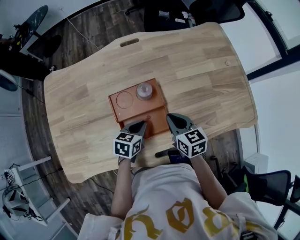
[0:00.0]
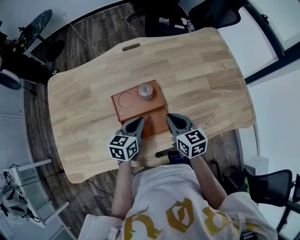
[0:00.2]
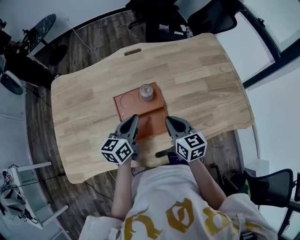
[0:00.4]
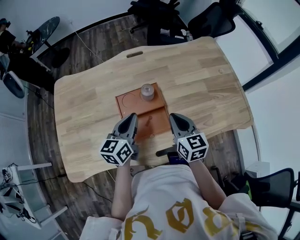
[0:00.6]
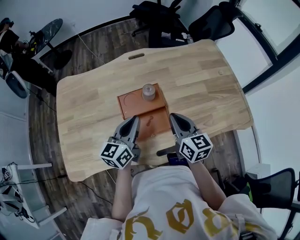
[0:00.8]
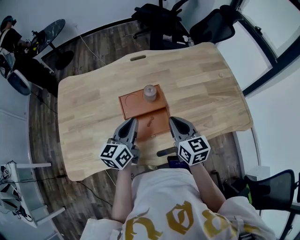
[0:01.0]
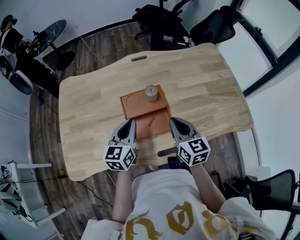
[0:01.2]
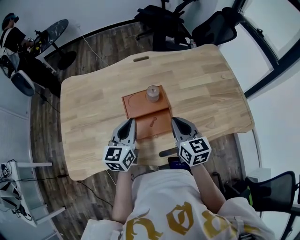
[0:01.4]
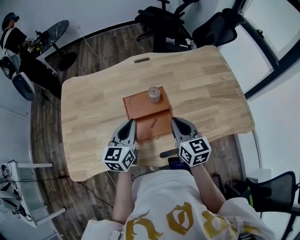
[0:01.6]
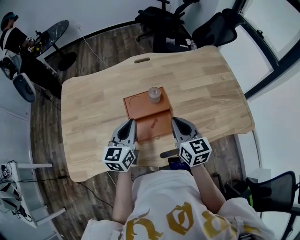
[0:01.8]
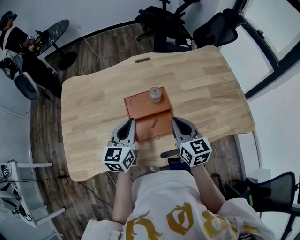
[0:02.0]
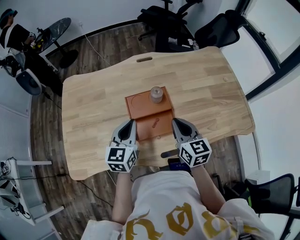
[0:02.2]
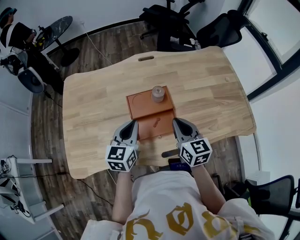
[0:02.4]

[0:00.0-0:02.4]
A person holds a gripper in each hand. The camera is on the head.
0:00.0 to 0:01.2: The right gripper travels upward and backward by some 15 cm, while the left gripper travels upward and to the left by roughly 20 cm, and swivels about 40 degrees.
0:01.2 to 0:02.4: There are only small adjustments of the grippers.

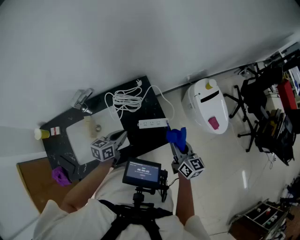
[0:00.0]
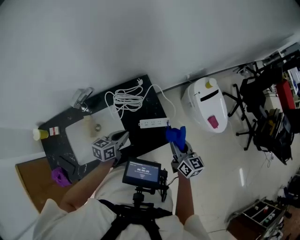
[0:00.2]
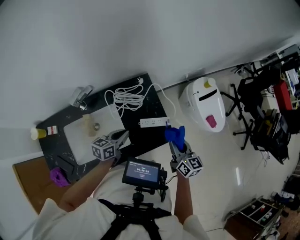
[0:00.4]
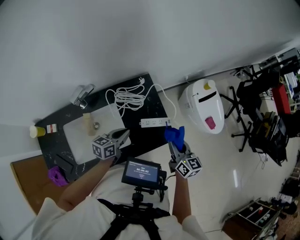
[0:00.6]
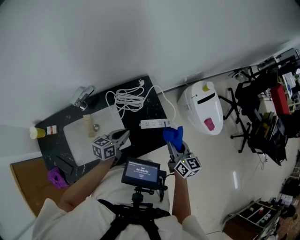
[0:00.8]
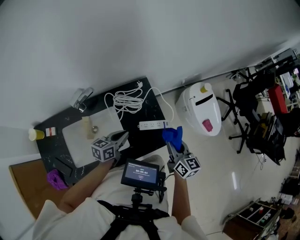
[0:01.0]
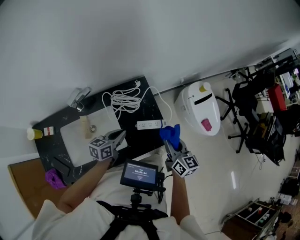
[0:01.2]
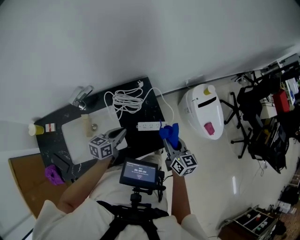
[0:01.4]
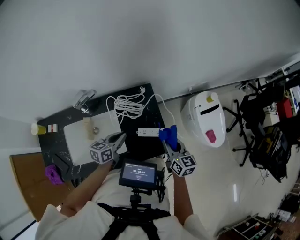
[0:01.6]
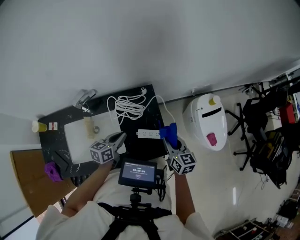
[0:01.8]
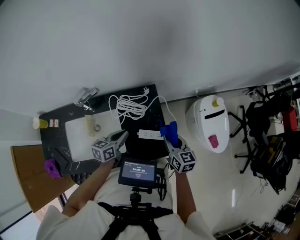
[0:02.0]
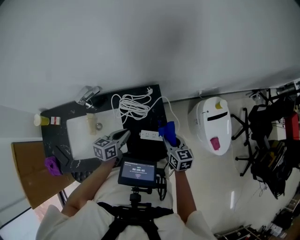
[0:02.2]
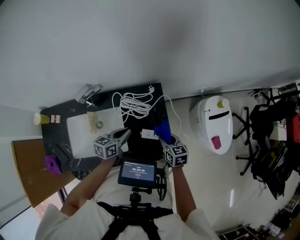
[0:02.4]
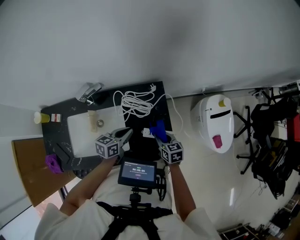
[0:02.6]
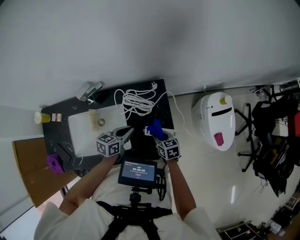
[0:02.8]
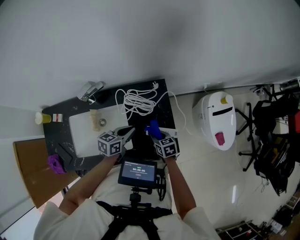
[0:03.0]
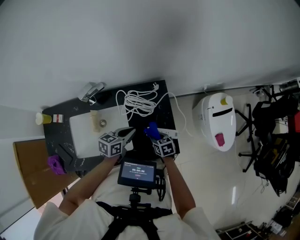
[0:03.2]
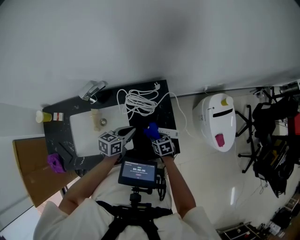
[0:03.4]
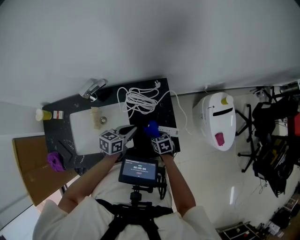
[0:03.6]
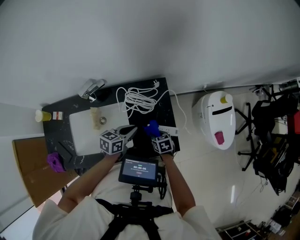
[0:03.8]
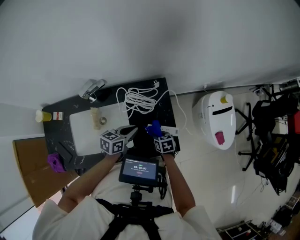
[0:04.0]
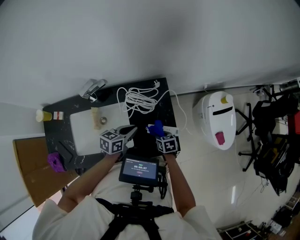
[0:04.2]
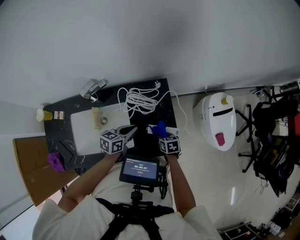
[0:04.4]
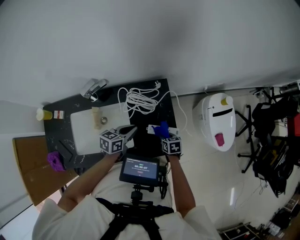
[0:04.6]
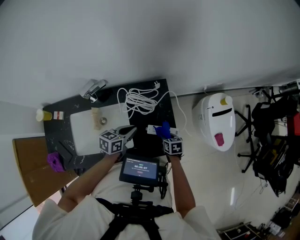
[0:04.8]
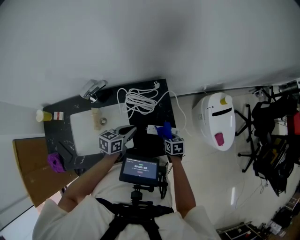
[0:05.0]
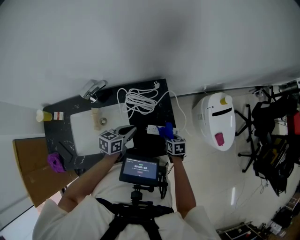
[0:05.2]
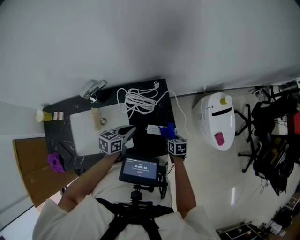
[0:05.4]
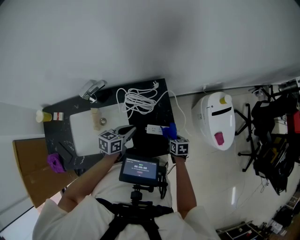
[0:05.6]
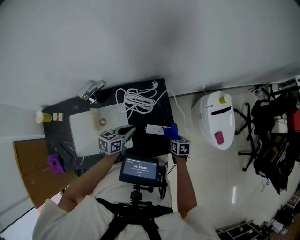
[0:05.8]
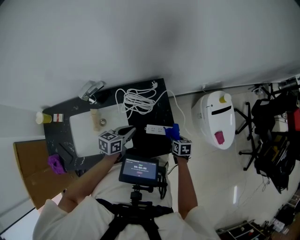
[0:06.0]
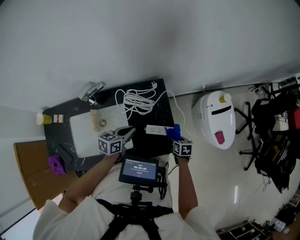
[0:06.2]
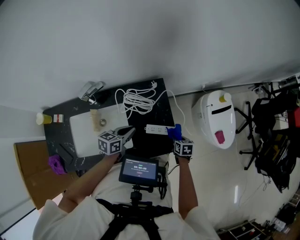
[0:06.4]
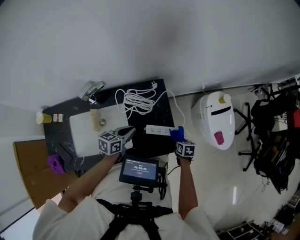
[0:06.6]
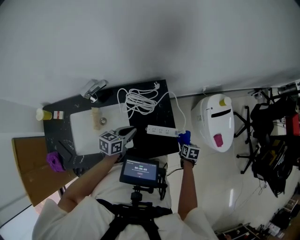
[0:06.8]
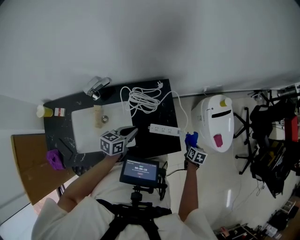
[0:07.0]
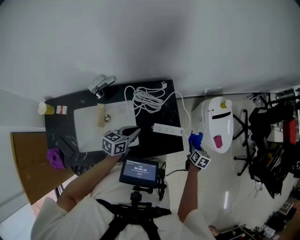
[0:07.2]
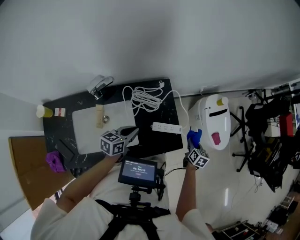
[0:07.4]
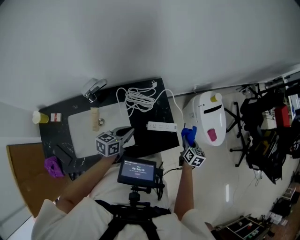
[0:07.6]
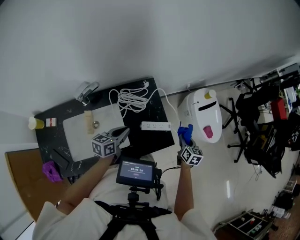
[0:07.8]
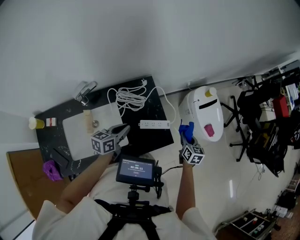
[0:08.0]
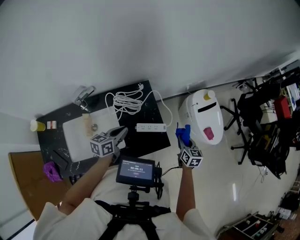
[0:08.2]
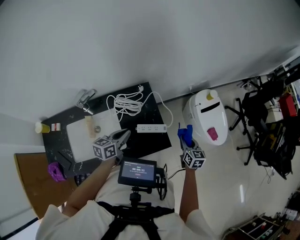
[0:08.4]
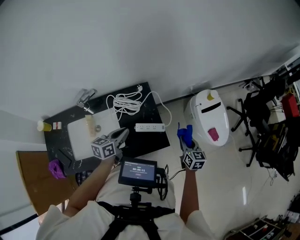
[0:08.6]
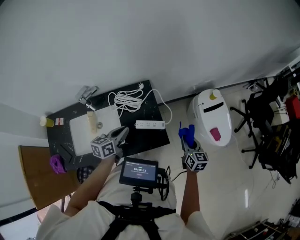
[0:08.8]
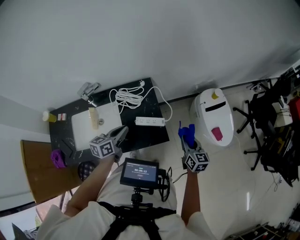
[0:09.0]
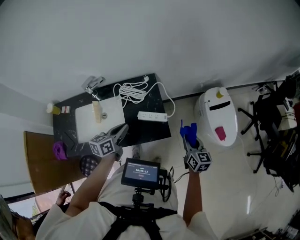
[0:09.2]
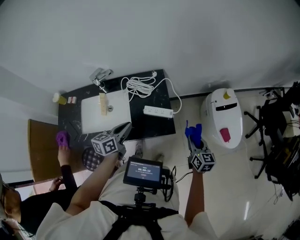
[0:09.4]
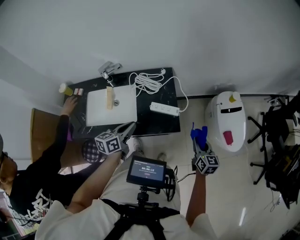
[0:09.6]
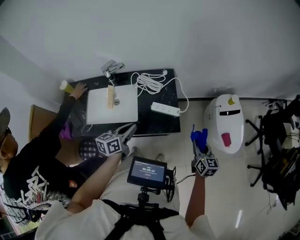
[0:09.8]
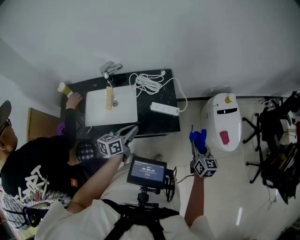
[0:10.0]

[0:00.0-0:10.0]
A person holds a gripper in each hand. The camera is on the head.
0:00.0 to 0:01.4: The right gripper shifts about 5 cm to the left.
0:01.4 to 0:02.8: The right gripper heads downward, forward and to the left, covering about 20 cm, and changes its angle by some 40 degrees, while the left gripper heads forward, covering approximately 5 cm.
0:02.8 to 0:04.2: The right gripper goes some 5 cm downward.
0:04.2 to 0:05.8: The right gripper is displaced to the right by some 10 cm.
0:05.8 to 0:07.2: The right gripper travels to the right by about 10 cm, and rotates some 20 degrees. Meanwhile the left gripper moves about 5 cm.
0:07.2 to 0:08.6: The left gripper goes roughly 15 cm to the right and upward. Meanwhile the right gripper goes roughly 15 cm upward and to the right, and rotates some 20 degrees.
0:08.6 to 0:10.0: The grippers both shift backward by some 20 cm.

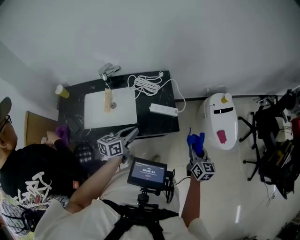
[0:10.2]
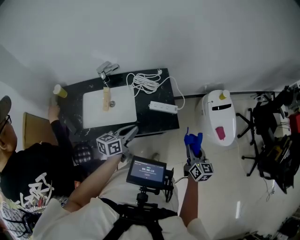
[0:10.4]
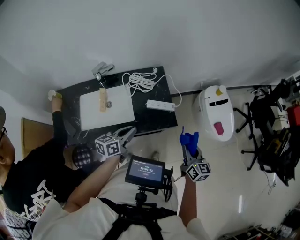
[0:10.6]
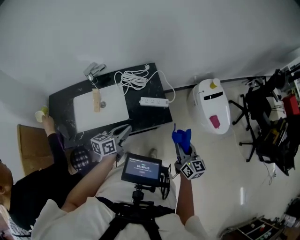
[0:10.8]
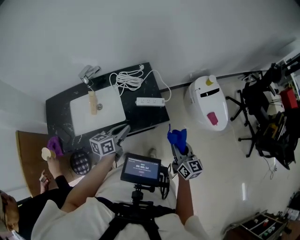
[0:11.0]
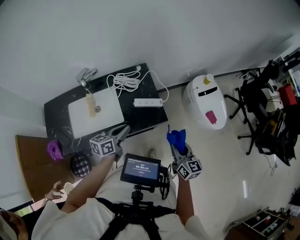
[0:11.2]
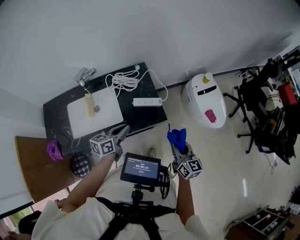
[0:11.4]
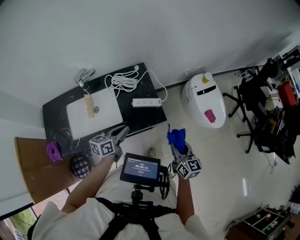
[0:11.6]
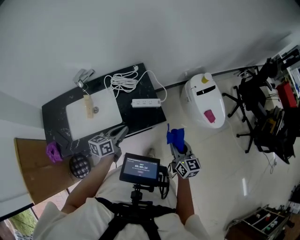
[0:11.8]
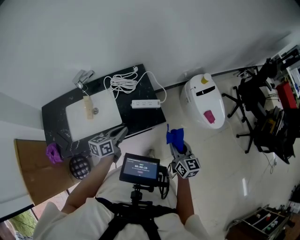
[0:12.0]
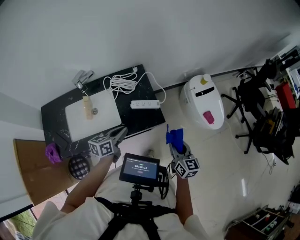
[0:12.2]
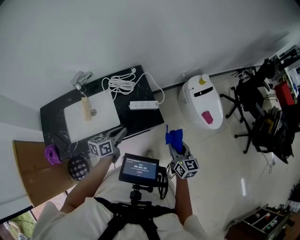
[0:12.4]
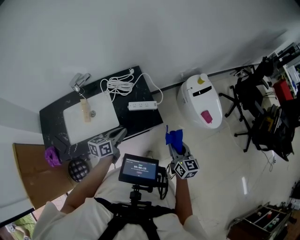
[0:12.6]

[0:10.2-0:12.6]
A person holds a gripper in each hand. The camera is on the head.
0:10.2 to 0:11.4: The right gripper moves backward, some 5 cm.
0:11.4 to 0:12.6: The grippers move only a little.

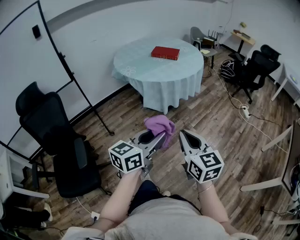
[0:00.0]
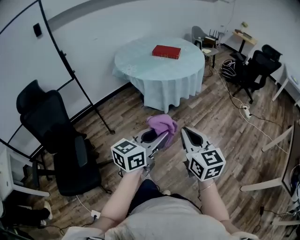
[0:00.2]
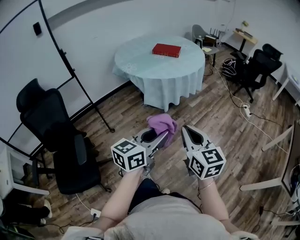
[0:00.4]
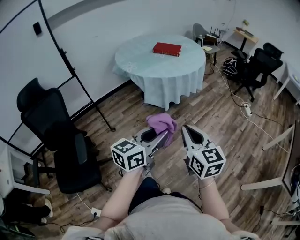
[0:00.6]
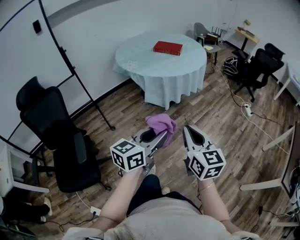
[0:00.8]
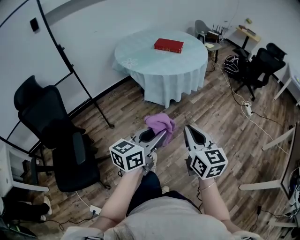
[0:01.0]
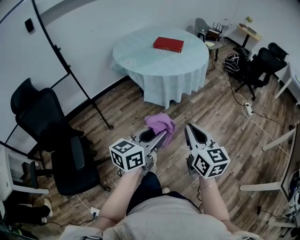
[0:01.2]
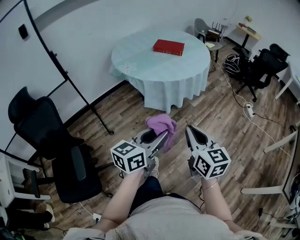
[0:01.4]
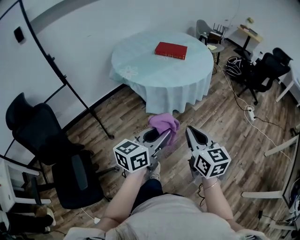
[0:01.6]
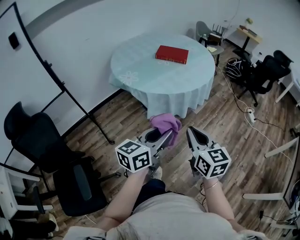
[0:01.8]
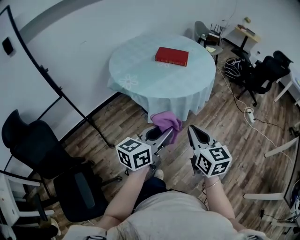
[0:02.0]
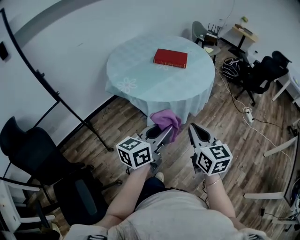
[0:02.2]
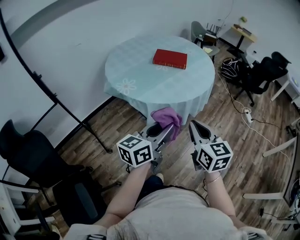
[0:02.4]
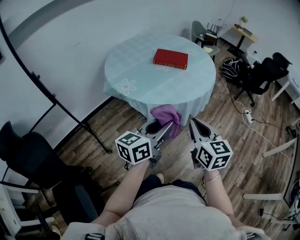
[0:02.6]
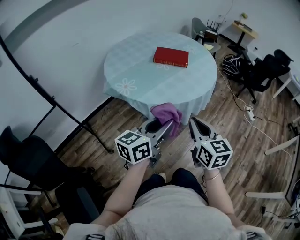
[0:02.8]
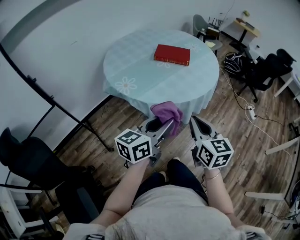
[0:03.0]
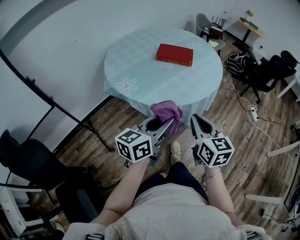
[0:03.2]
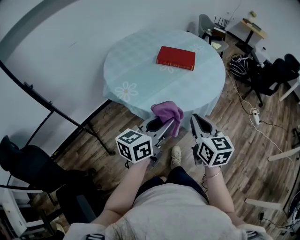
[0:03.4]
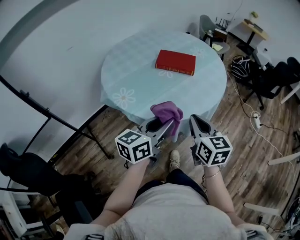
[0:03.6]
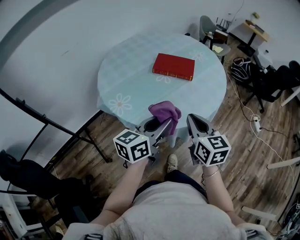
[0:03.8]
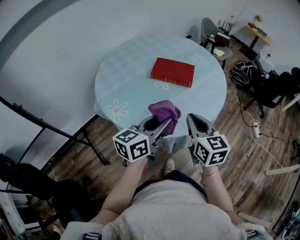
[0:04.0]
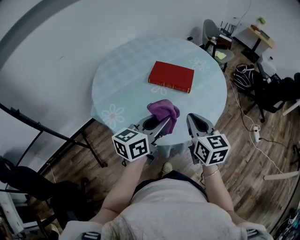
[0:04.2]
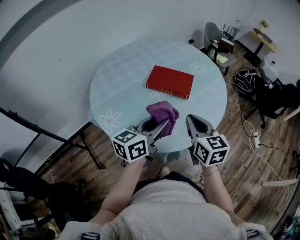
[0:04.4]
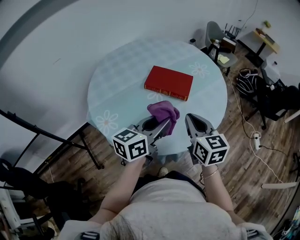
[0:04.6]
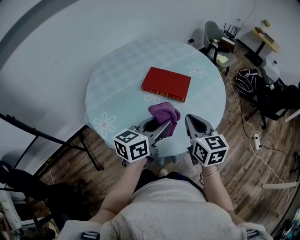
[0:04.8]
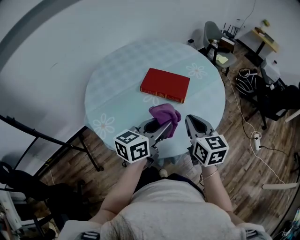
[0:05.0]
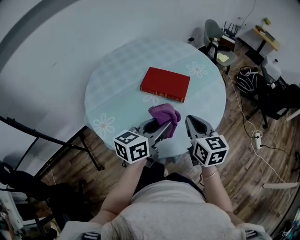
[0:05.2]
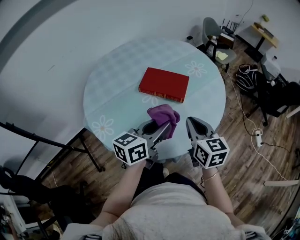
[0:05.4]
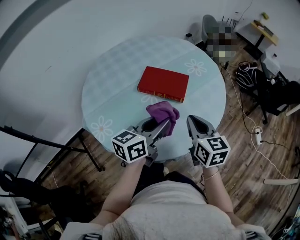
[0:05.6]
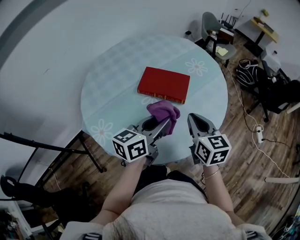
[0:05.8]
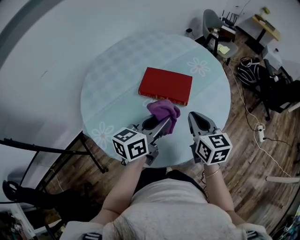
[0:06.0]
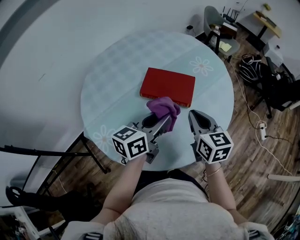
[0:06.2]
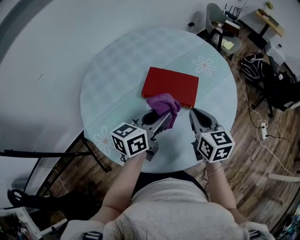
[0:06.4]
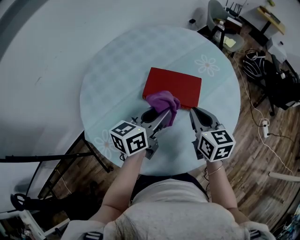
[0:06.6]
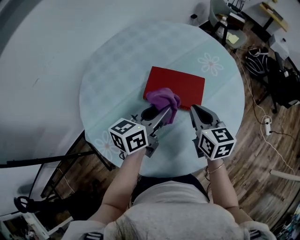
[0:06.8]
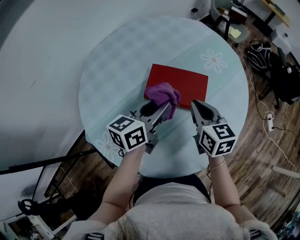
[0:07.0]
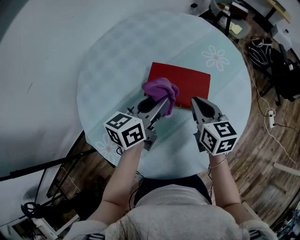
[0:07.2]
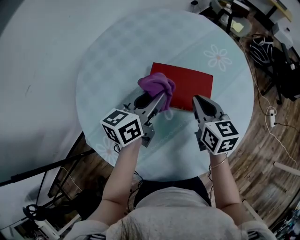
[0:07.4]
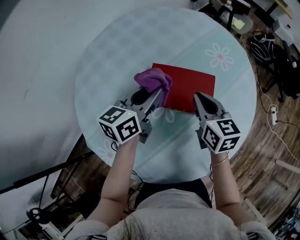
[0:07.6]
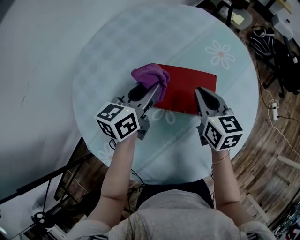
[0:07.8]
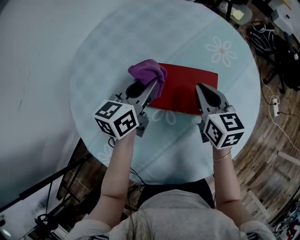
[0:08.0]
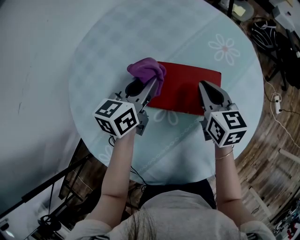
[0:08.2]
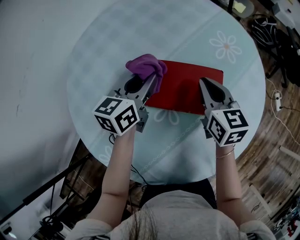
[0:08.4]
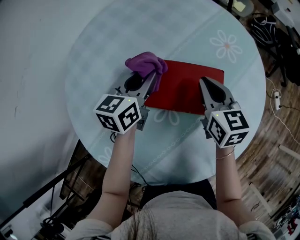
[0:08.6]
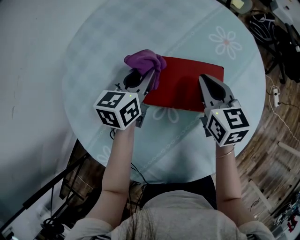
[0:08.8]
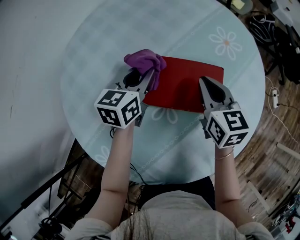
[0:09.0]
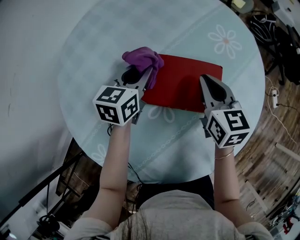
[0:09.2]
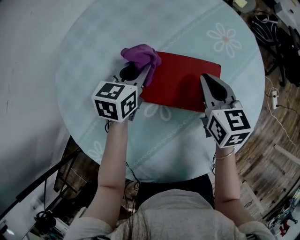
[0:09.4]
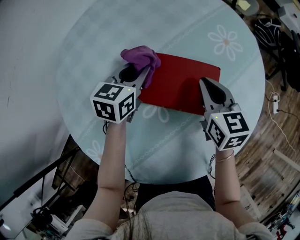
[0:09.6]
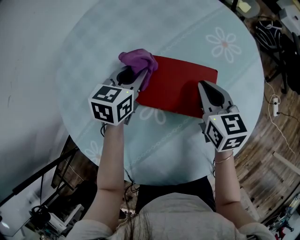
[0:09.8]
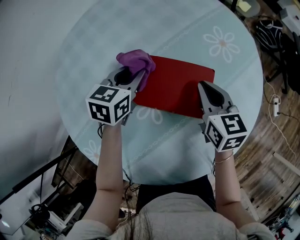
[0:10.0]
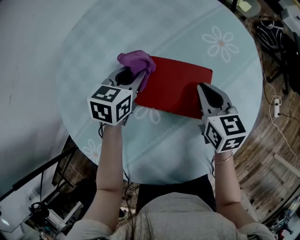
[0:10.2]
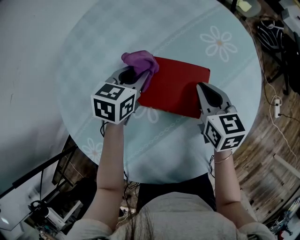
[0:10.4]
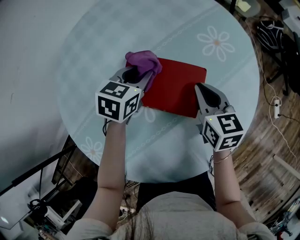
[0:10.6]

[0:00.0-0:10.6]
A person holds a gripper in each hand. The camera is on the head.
0:00.0 to 0:01.6: The two grippers go roughly 15 cm forward.
0:01.6 to 0:03.0: The grippers both shift forward and to the left by roughly 20 cm.
0:03.0 to 0:04.6: The two grippers go about 35 cm forward.
0:04.6 to 0:06.0: The two grippers go approximately 10 cm forward.
0:06.0 to 0:07.6: The right gripper is displaced forward, to the left and downward by approximately 20 cm. The left gripper goes approximately 20 cm forward and to the left.
0:07.6 to 0:09.0: The right gripper ends up roughly 5 cm from where it was. Meanwhile the left gripper goes roughly 10 cm downward and forward.
0:09.0 to 0:10.6: Both grippers travel together to the right, some 5 cm.
